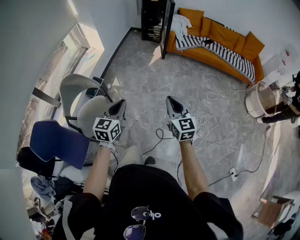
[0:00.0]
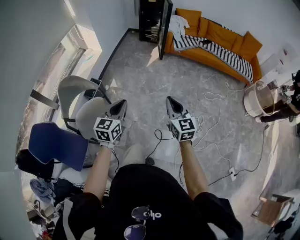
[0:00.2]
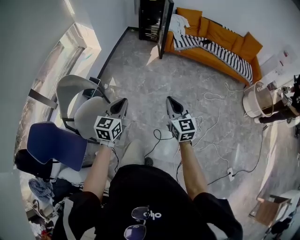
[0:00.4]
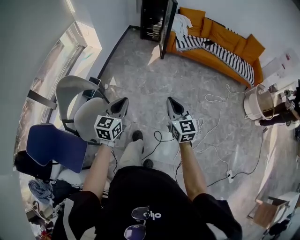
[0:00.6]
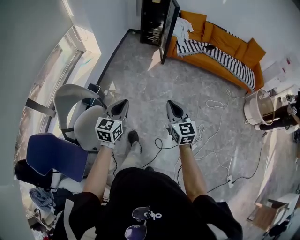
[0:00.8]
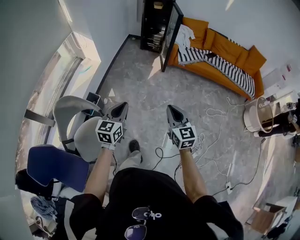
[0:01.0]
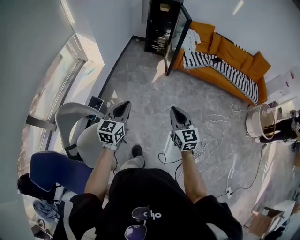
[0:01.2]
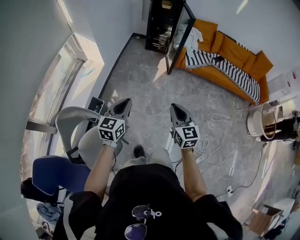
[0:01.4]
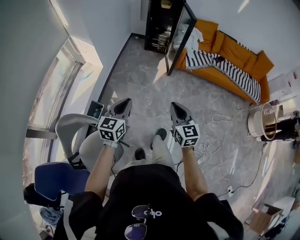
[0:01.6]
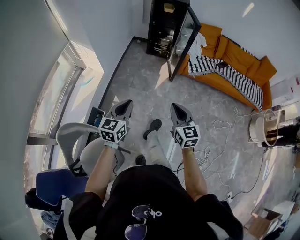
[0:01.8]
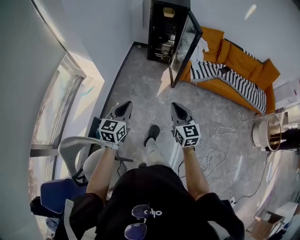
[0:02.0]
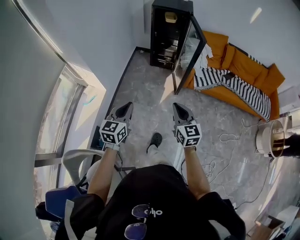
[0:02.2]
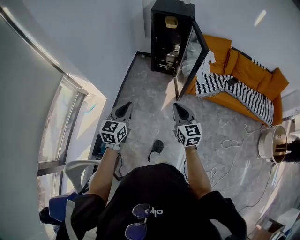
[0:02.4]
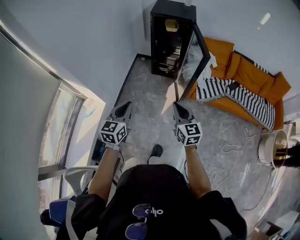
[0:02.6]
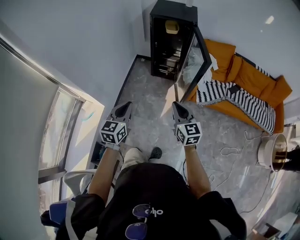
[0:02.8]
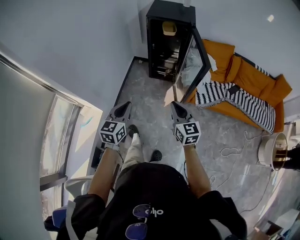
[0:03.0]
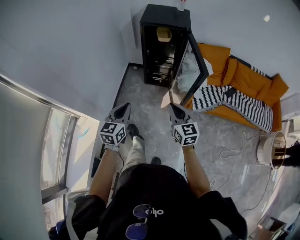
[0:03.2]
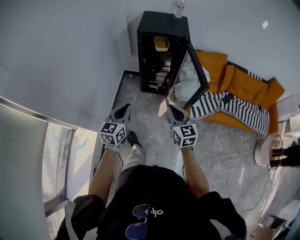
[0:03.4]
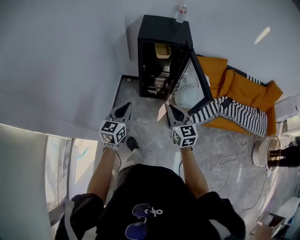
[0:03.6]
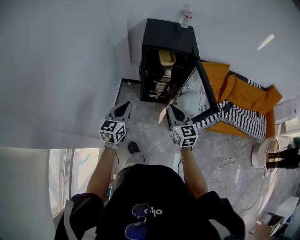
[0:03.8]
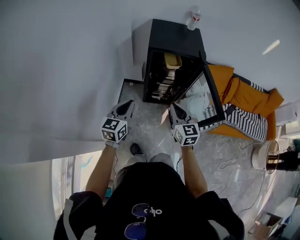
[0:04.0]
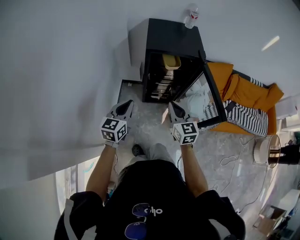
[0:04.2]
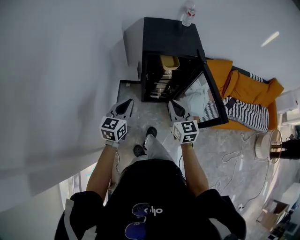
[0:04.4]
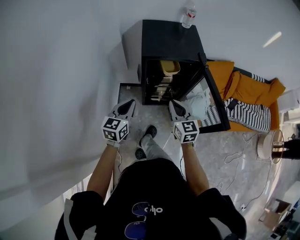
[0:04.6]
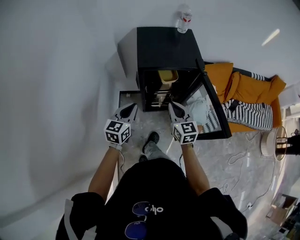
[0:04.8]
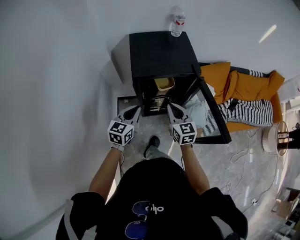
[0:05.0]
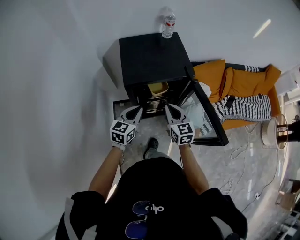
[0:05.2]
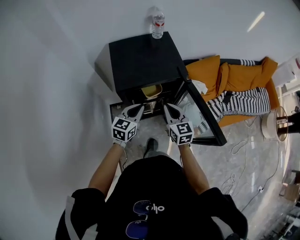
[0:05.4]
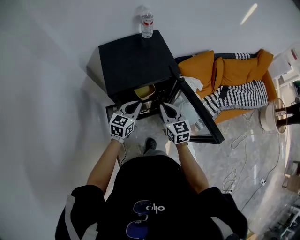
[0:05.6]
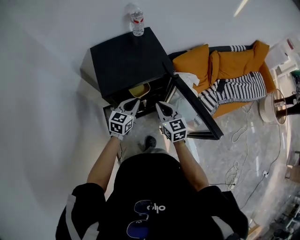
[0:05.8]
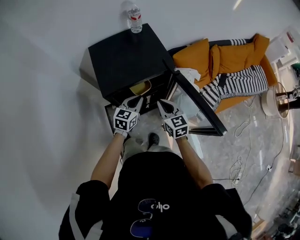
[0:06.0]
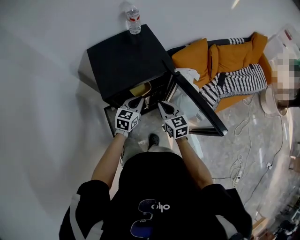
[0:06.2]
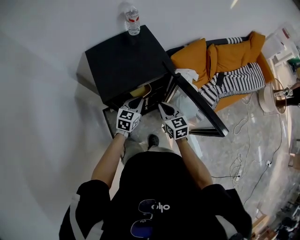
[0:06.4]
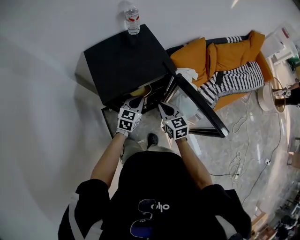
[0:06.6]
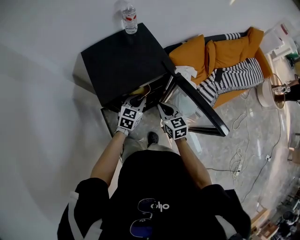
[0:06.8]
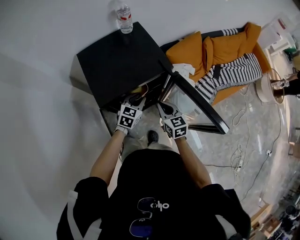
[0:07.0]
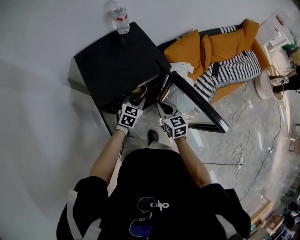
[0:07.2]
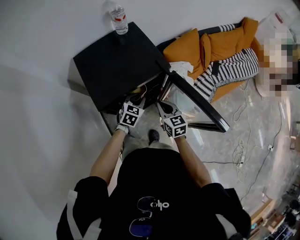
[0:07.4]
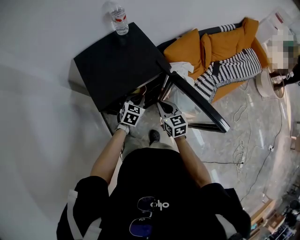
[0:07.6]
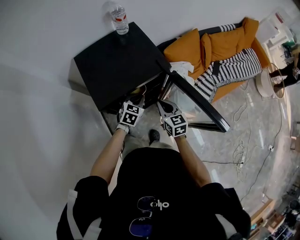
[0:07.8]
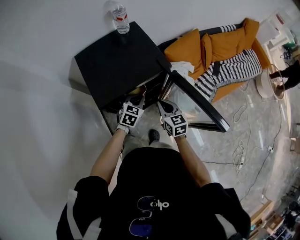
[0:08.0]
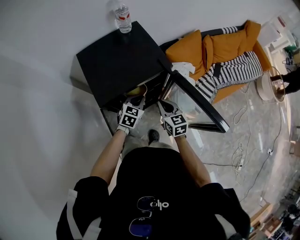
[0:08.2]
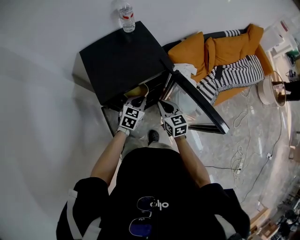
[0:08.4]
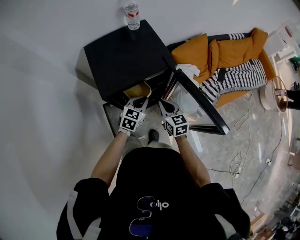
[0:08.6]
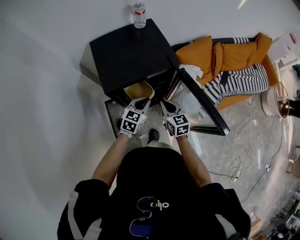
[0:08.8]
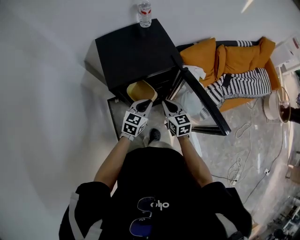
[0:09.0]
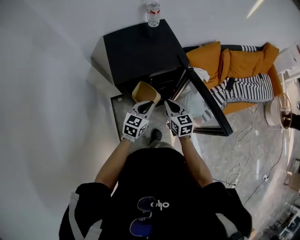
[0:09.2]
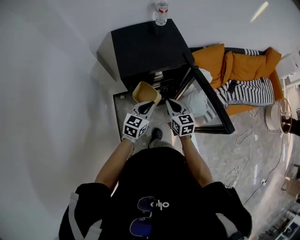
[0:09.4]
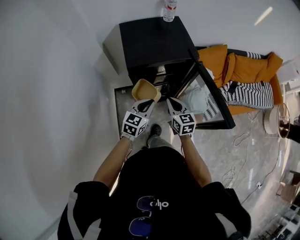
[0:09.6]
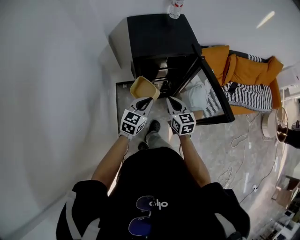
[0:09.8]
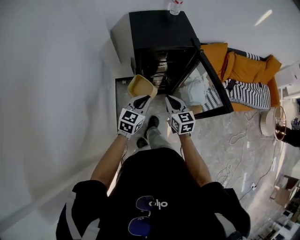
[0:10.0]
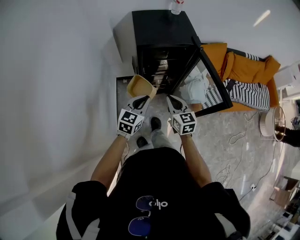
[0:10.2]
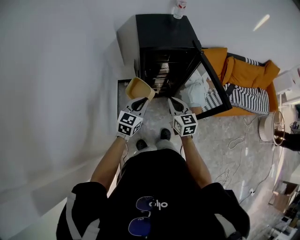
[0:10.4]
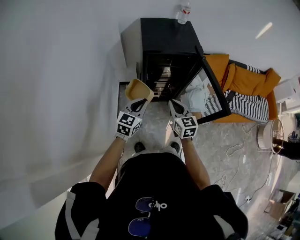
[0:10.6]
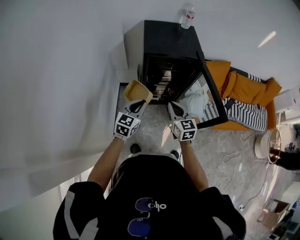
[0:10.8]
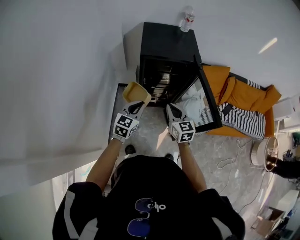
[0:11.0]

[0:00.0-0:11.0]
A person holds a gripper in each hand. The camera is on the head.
0:00.0 to 0:01.6: The pair of grippers is taken forward, roughly 40 cm.
0:01.6 to 0:03.2: The two grippers travel together, forward, about 60 cm.
0:03.2 to 0:04.8: The two grippers travel together, forward, approximately 50 cm.
0:04.8 to 0:06.2: The left gripper travels forward, to the right and downward by some 25 cm, and turns by some 30 degrees. The right gripper is displaced forward, downward and to the right by roughly 15 cm.
0:06.2 to 0:07.8: The left gripper is displaced downward by some 5 cm, and rotates approximately 20 degrees.
0:07.8 to 0:09.4: The left gripper shifts roughly 15 cm backward and upward, and rotates about 20 degrees. The right gripper travels backward by some 5 cm.
0:09.4 to 0:11.0: The left gripper goes some 15 cm backward; the right gripper moves backward and upward, roughly 15 cm.

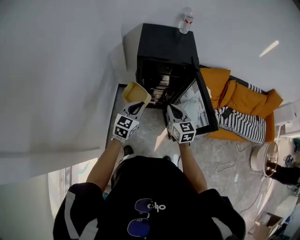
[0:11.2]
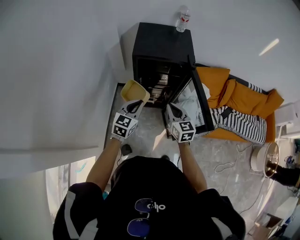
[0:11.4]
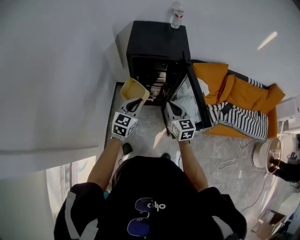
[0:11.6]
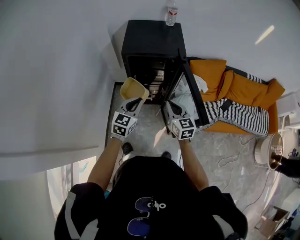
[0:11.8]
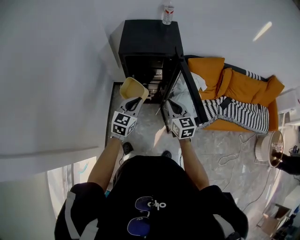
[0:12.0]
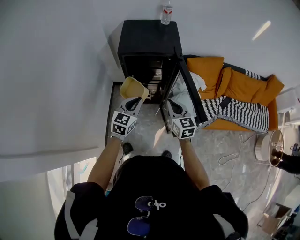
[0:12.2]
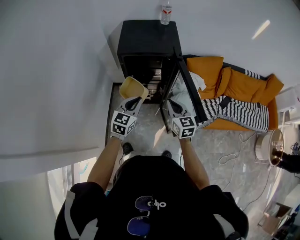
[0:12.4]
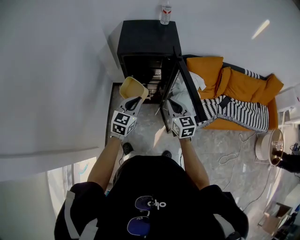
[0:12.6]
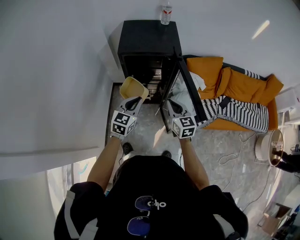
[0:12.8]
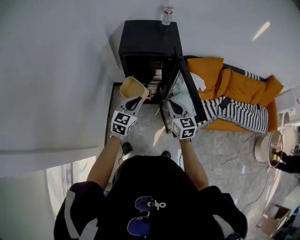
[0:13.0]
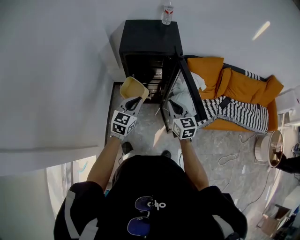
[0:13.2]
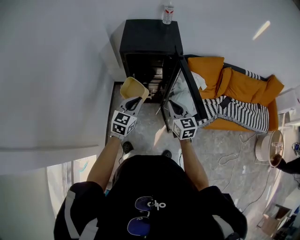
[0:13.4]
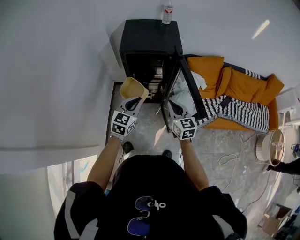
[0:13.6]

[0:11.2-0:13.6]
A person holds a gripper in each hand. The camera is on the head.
0:11.2 to 0:12.4: The grippers both shift to the right by roughly 10 cm.
0:12.4 to 0:13.6: The grippers make only small movements.

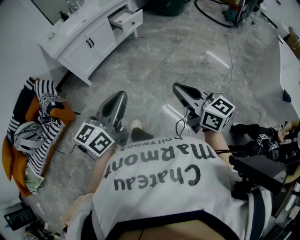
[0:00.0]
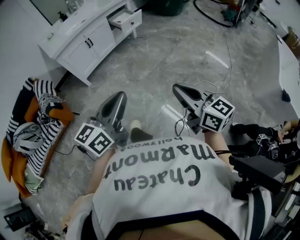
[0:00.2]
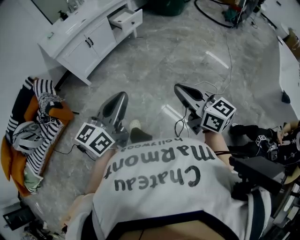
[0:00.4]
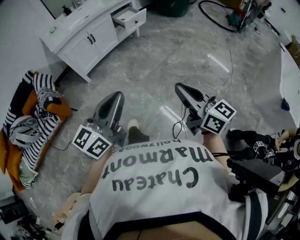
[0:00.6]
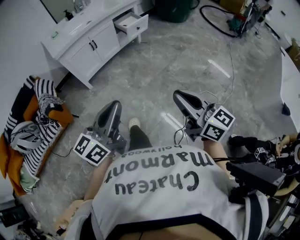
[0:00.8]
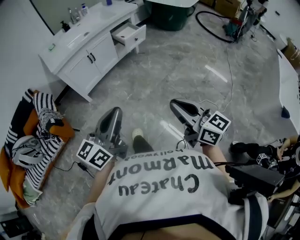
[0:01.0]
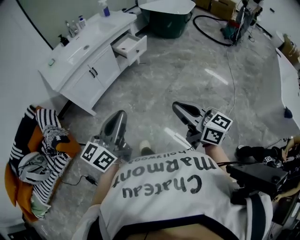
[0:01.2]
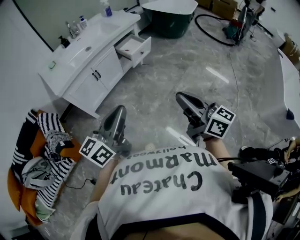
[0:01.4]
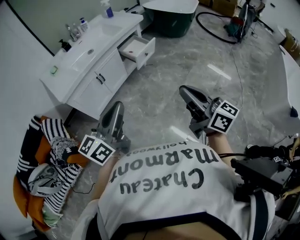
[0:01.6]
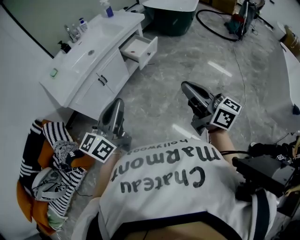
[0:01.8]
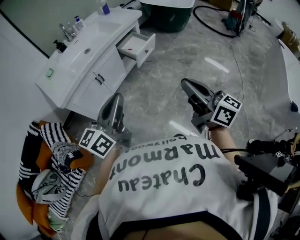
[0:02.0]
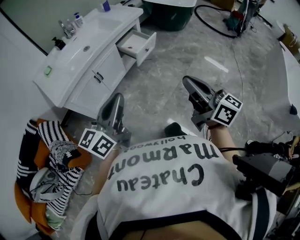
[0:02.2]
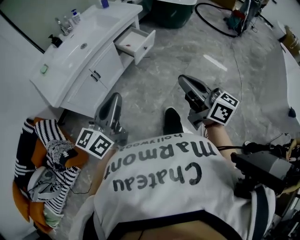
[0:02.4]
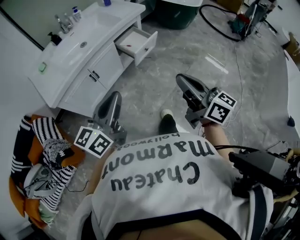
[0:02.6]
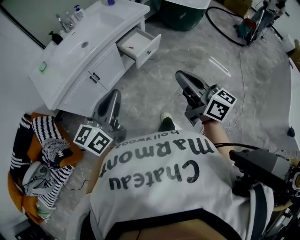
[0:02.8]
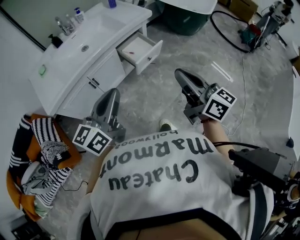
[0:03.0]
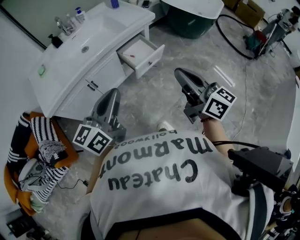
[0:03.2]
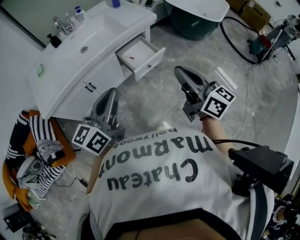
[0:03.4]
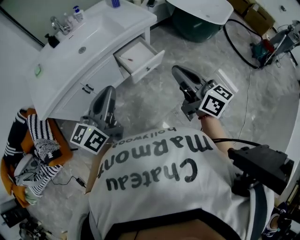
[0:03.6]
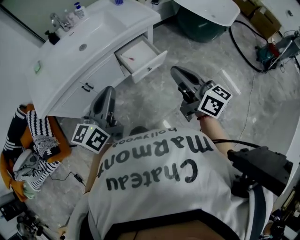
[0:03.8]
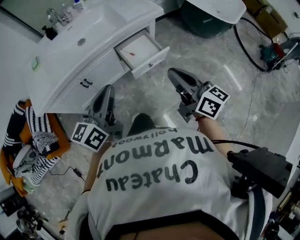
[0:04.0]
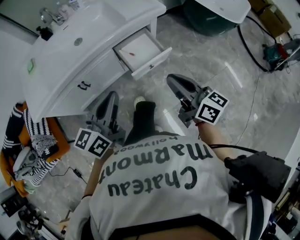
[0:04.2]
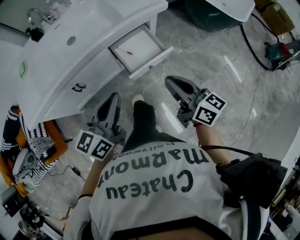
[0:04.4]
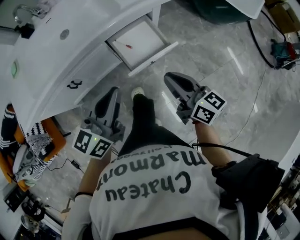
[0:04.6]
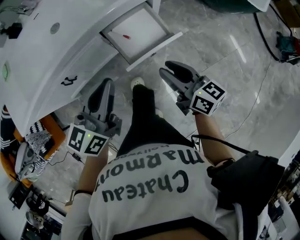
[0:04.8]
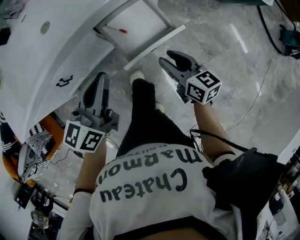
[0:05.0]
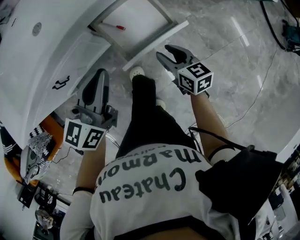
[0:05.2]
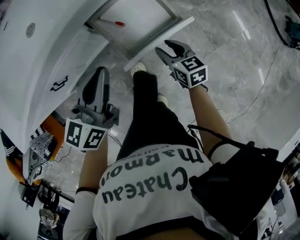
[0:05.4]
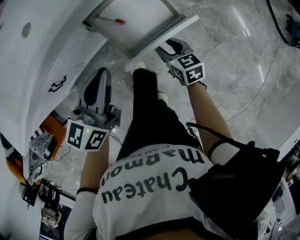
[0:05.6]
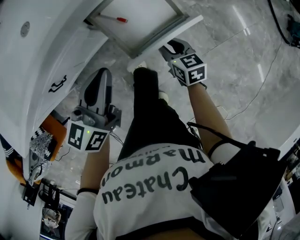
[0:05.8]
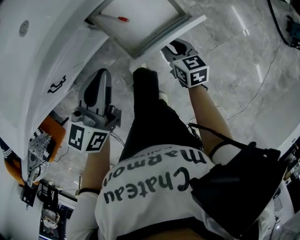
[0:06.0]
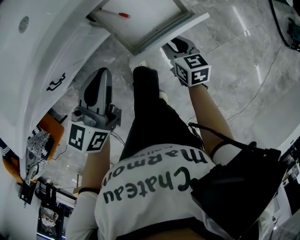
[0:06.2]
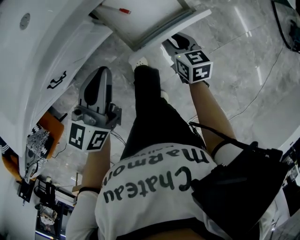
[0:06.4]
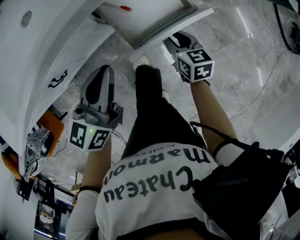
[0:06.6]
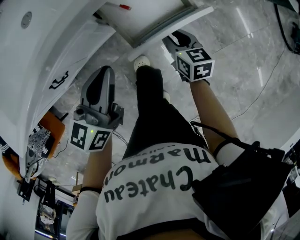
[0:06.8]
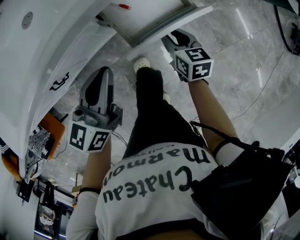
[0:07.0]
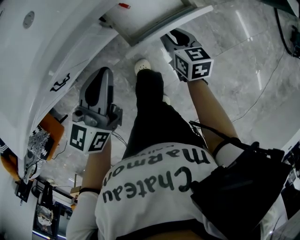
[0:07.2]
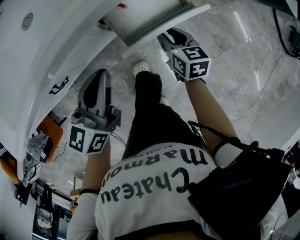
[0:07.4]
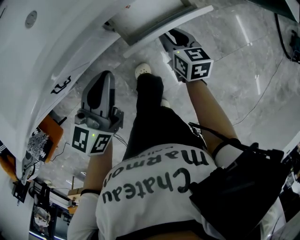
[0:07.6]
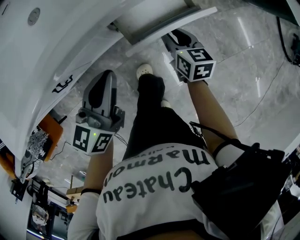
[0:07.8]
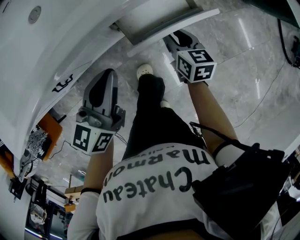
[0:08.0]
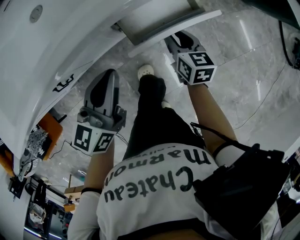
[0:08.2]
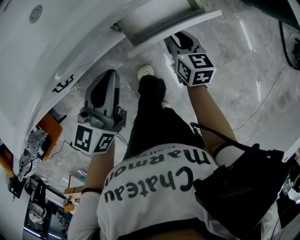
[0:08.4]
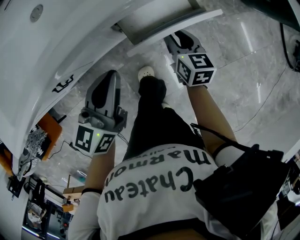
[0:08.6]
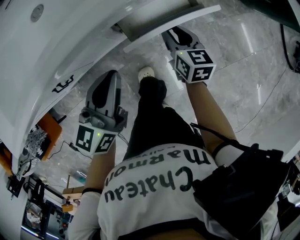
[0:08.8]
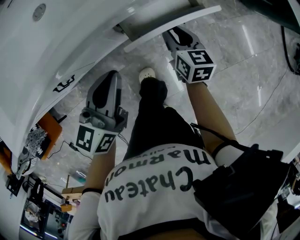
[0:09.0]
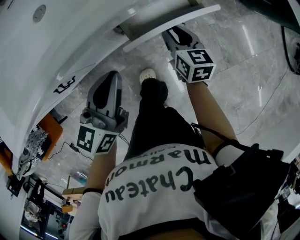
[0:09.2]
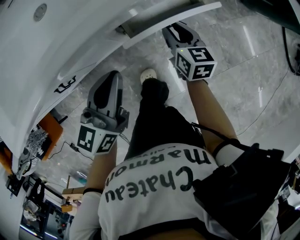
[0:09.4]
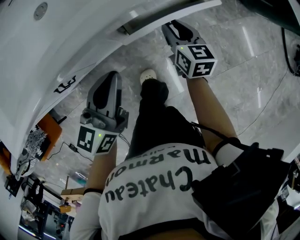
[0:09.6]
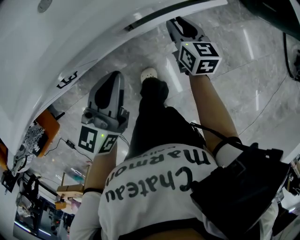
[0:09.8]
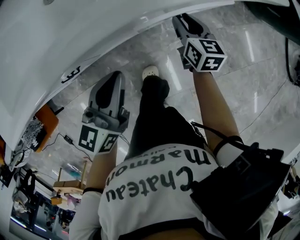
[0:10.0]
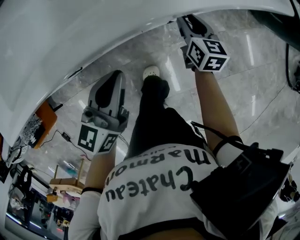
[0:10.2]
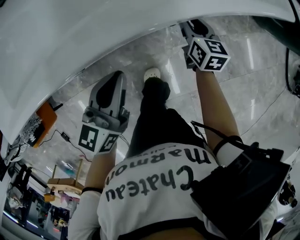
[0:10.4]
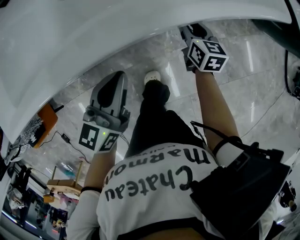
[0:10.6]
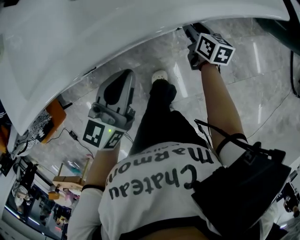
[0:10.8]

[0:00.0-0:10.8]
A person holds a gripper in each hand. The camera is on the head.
0:00.0 to 0:01.6: The left gripper moves forward and to the left, roughly 35 cm, while the right gripper heads forward, covering about 30 cm.
0:01.6 to 0:03.0: The two grippers go approximately 25 cm forward.
0:03.0 to 0:04.6: The left gripper moves forward, downward and to the right, approximately 30 cm; the right gripper shifts roughly 35 cm forward and downward, and changes its angle by approximately 20 degrees.
0:04.6 to 0:06.2: The left gripper heads downward and forward, covering some 20 cm. Meanwhile the right gripper shifts about 30 cm downward and forward, tilts its fingers roughly 30 degrees downward, and opens up.
0:06.2 to 0:07.8: The left gripper changes place by approximately 5 cm. Meanwhile the right gripper travels forward by approximately 10 cm.
0:07.8 to 0:09.2: The grippers make only small movements.
0:09.2 to 0:10.8: The right gripper travels forward by about 5 cm; the left gripper moves about 5 cm.
